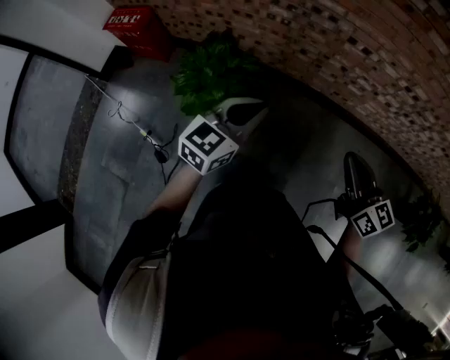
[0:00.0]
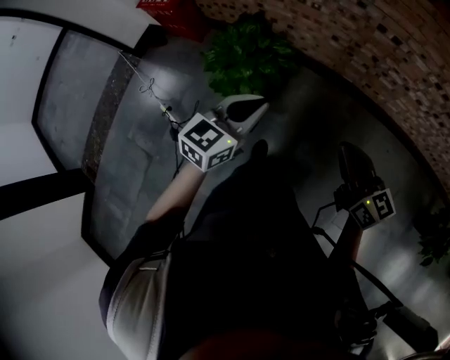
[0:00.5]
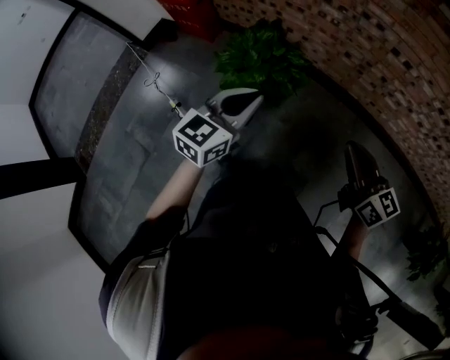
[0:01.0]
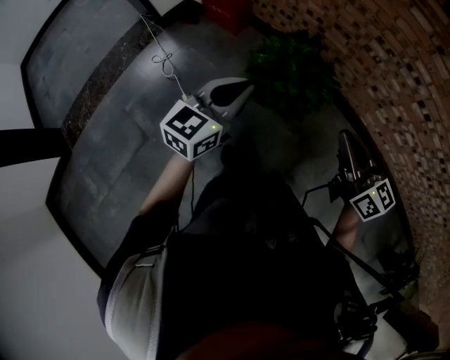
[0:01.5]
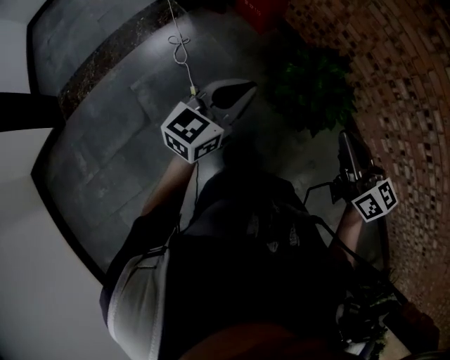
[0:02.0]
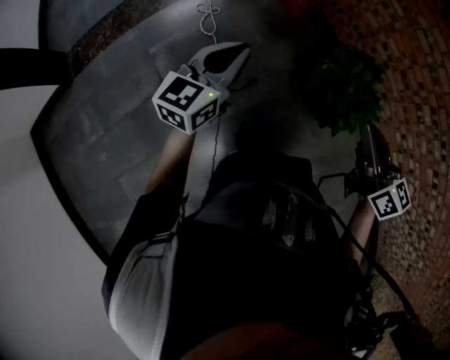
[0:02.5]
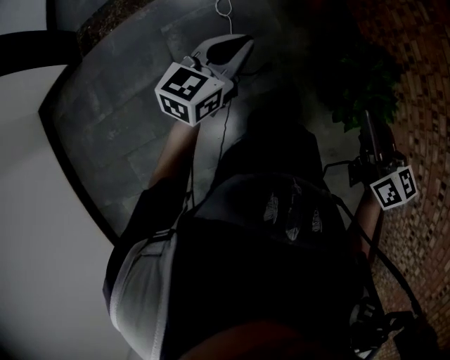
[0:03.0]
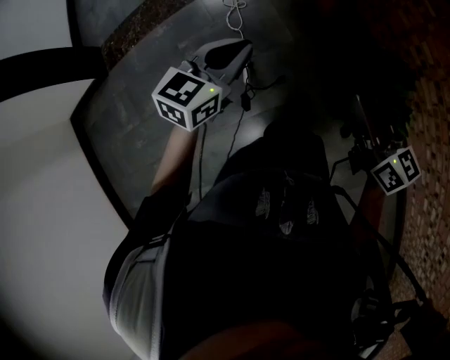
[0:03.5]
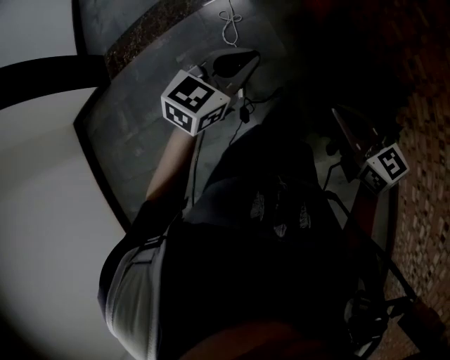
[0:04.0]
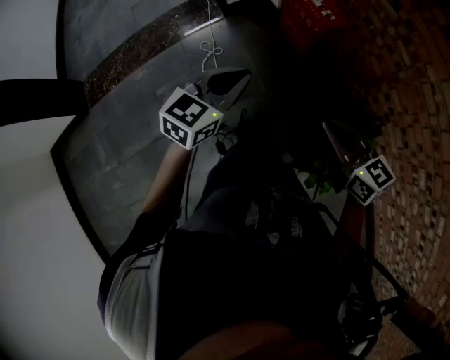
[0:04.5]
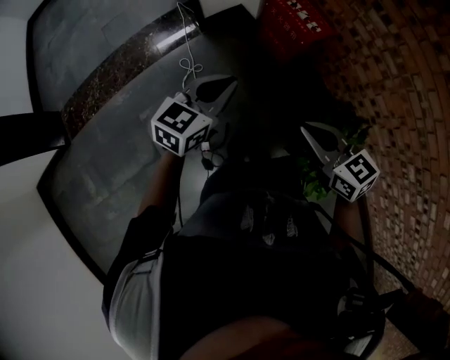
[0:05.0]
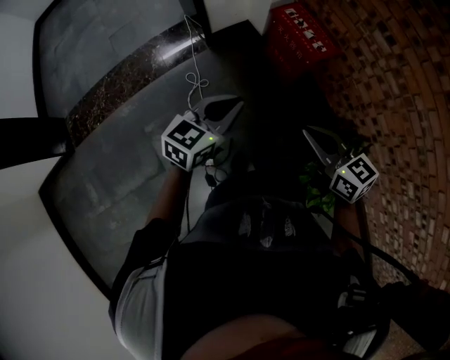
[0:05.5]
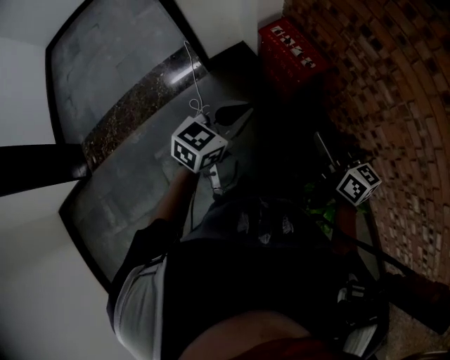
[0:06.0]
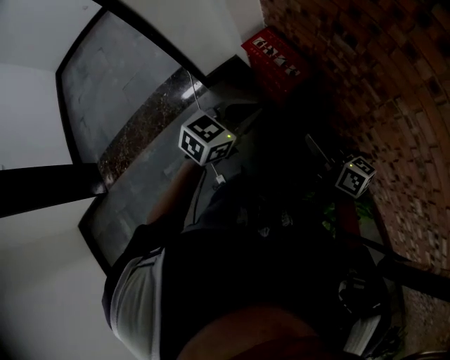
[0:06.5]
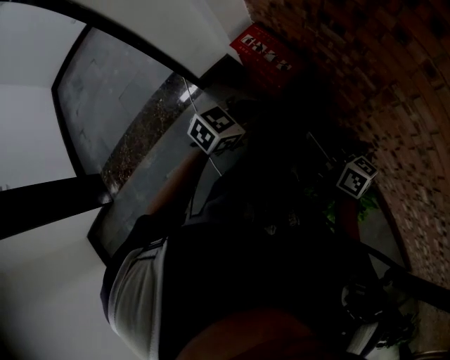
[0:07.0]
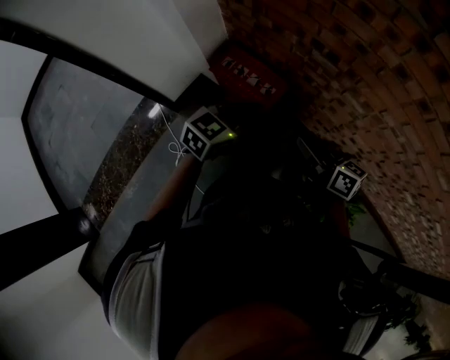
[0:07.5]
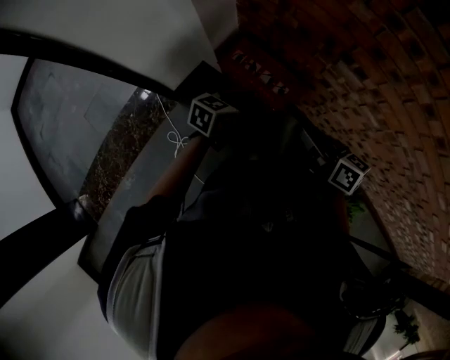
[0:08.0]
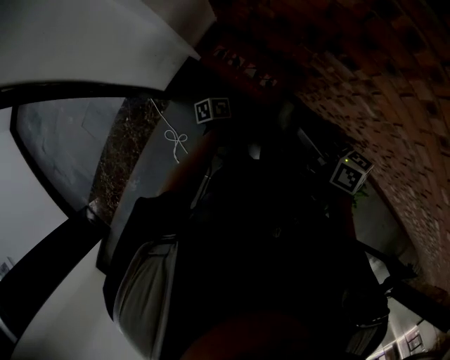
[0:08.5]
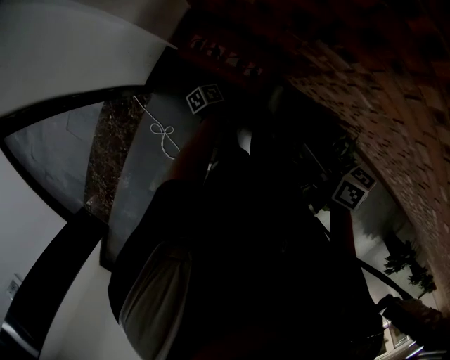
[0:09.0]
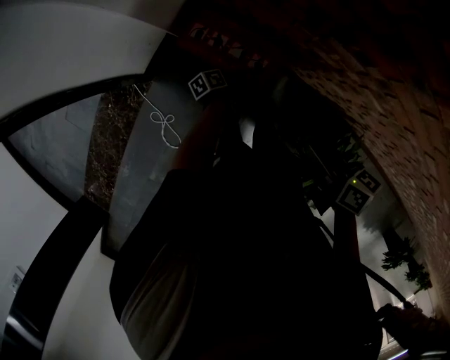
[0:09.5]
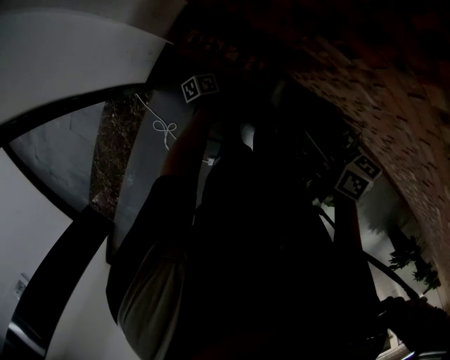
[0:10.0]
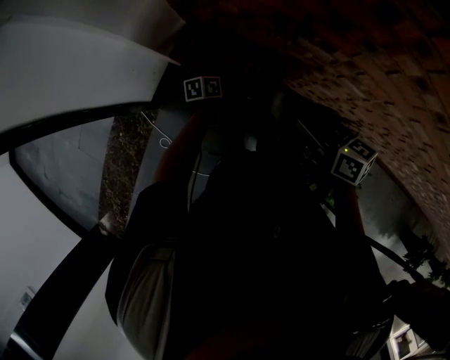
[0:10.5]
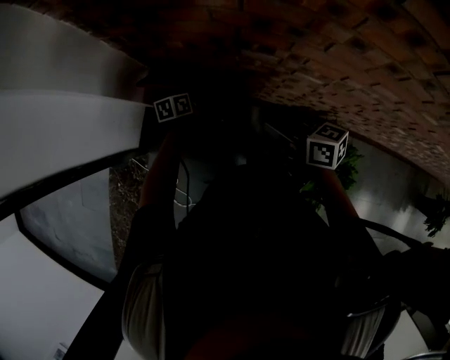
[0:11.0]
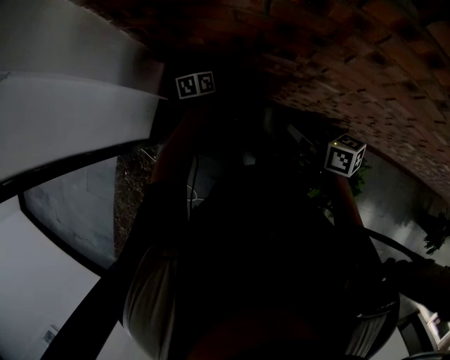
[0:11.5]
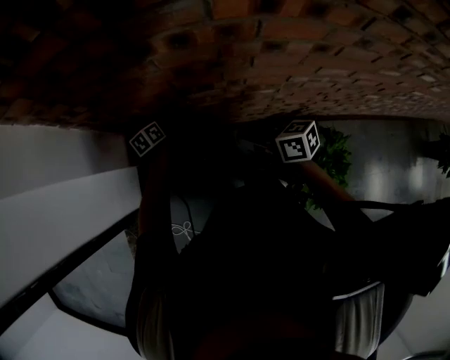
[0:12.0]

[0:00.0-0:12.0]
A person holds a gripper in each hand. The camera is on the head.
0:00.0 to 0:02.0: The pair of grippers is taken some 40 cm. The left gripper rotates about 30 degrees, while the right gripper rotates about 30 degrees.
0:02.0 to 0:04.0: The left gripper moves forward, about 25 cm, and swivels about 20 degrees. Meanwhile the right gripper goes approximately 25 cm forward and downward, and changes its angle by approximately 30 degrees.
0:04.0 to 0:06.0: Both grippers move forward, roughly 25 cm. The right gripper rotates approximately 20 degrees.
0:06.0 to 0:08.0: Both grippers move forward, approximately 25 cm. The left gripper rotates about 30 degrees, and opens its fingers.
0:08.0 to 0:10.0: The left gripper heads downward, covering roughly 30 cm, and rolls counterclockwise, seen from behind, by roughly 50 degrees, while the right gripper shifts approximately 10 cm to the right and downward.
0:10.0 to 0:12.0: The right gripper goes approximately 5 cm to the right, while the left gripper moves forward, upward and to the right, some 25 cm, and rotates roughly 40 degrees.

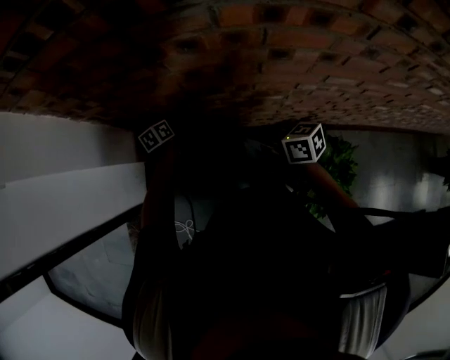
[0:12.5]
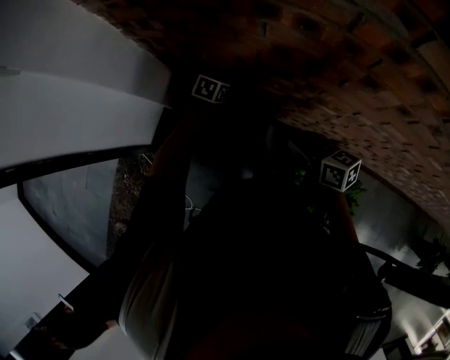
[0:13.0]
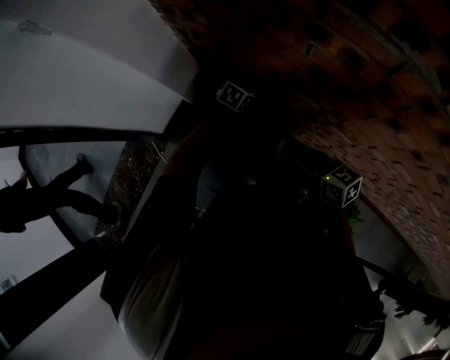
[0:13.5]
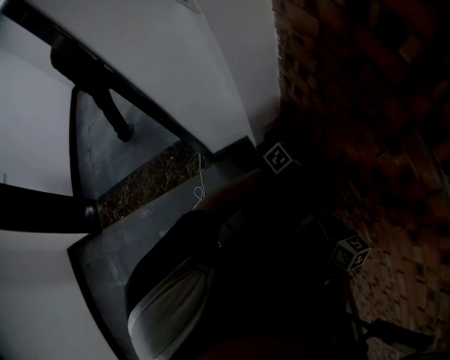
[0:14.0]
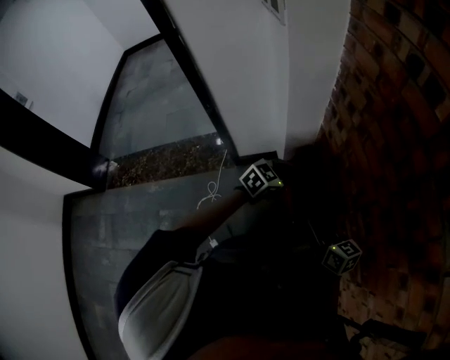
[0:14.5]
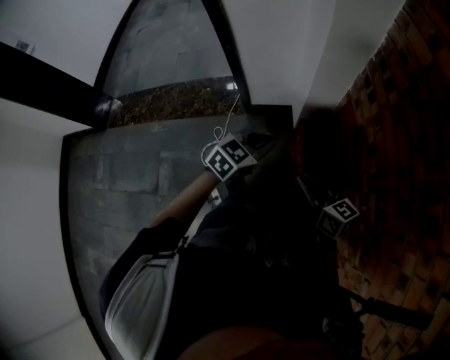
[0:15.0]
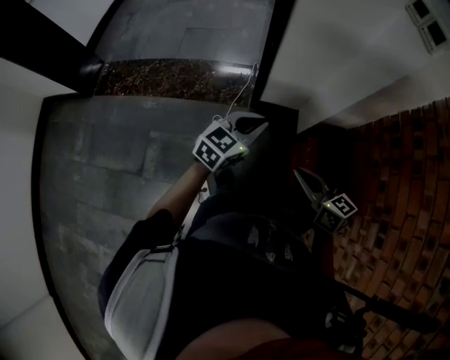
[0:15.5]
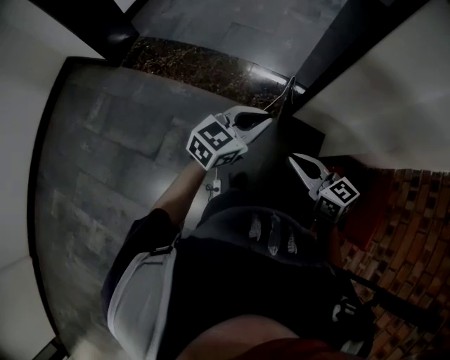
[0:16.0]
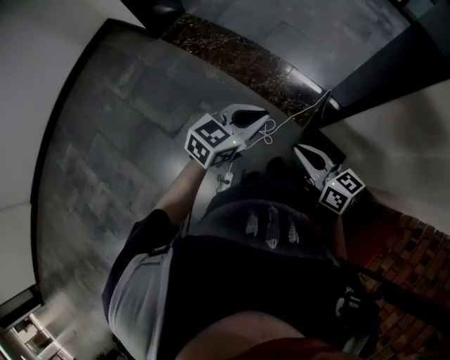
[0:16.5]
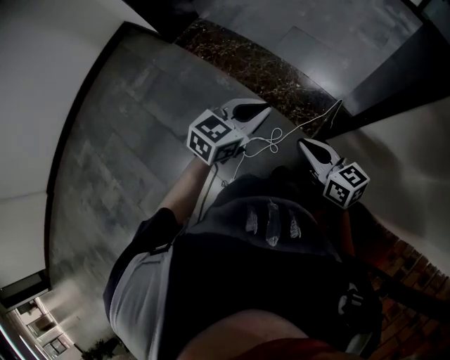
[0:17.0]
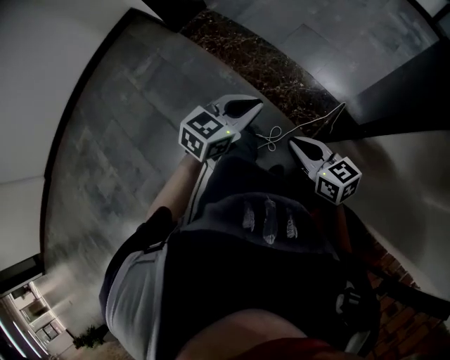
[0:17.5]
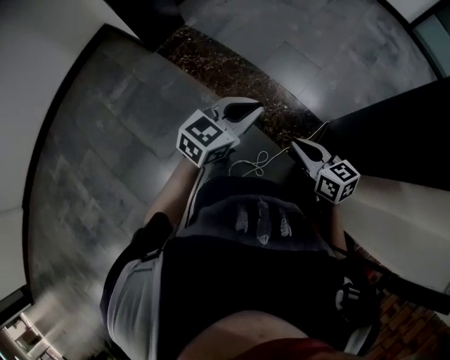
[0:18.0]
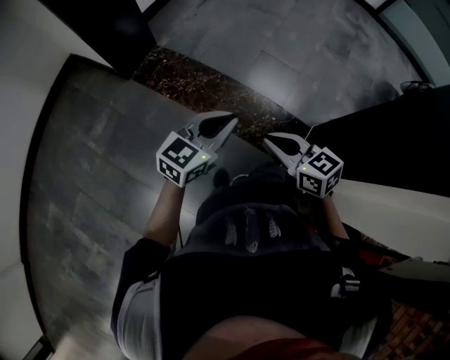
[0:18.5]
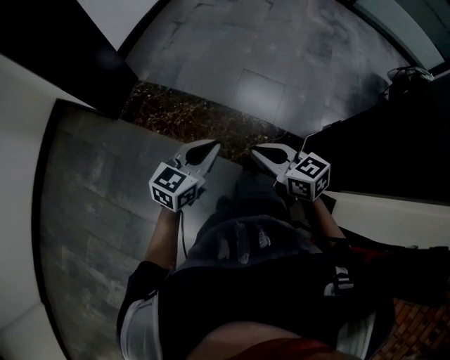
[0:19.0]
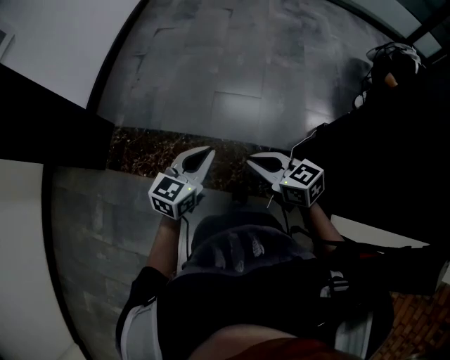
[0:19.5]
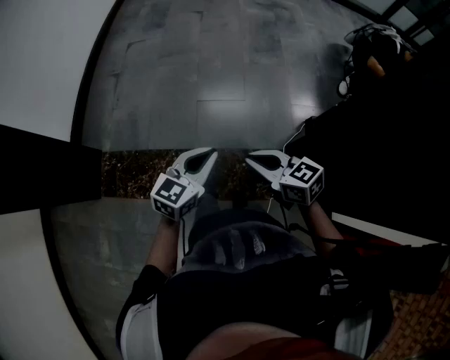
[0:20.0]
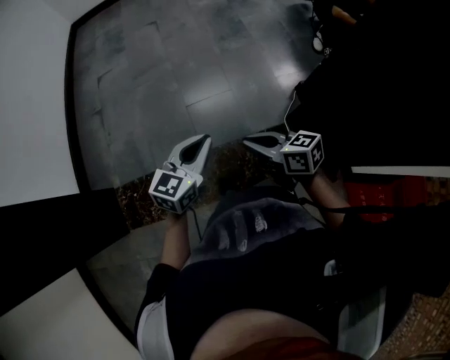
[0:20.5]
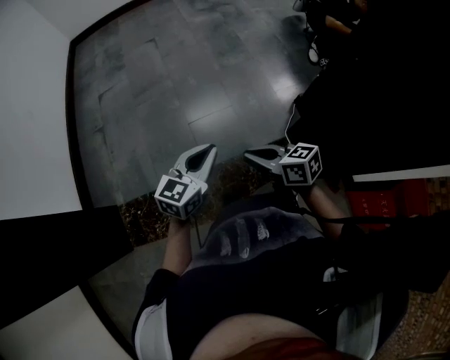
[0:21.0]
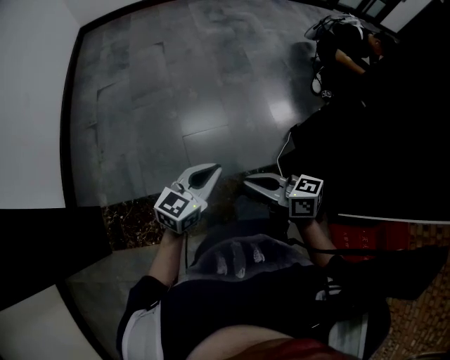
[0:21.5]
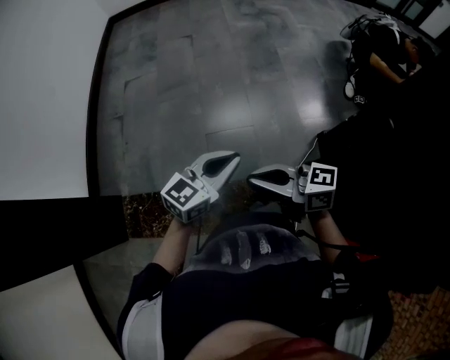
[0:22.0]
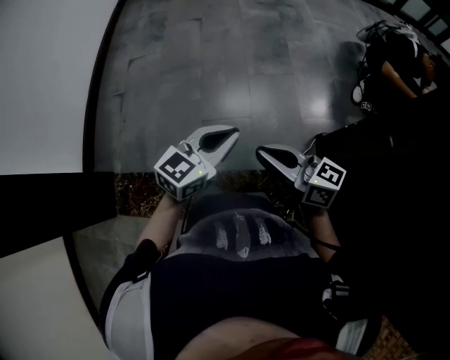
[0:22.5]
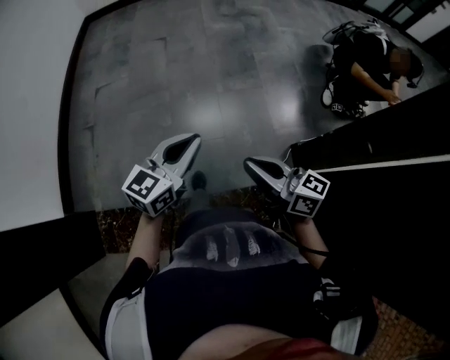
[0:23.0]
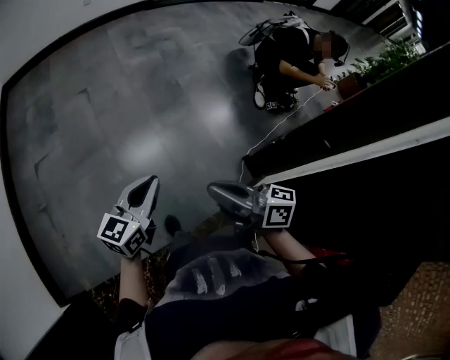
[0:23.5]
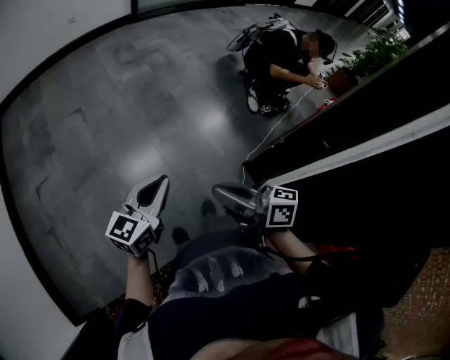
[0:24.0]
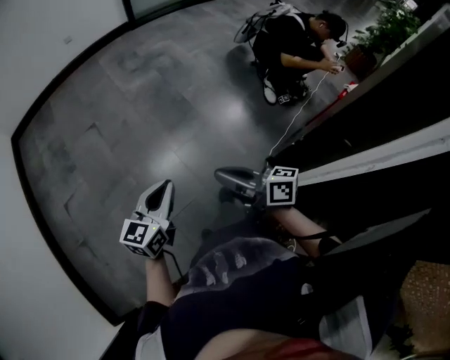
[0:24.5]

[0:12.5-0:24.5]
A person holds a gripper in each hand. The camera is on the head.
0:12.5 to 0:14.5: The left gripper shifts by about 25 cm, changes its angle by about 30 degrees, and closes. Meanwhile the right gripper changes place by roughly 15 cm, and rotates about 50 degrees.
0:14.5 to 0:16.5: Both grippers are carried roughly 60 cm. The right gripper changes its angle by roughly 60 degrees. The left gripper changes its angle by some 60 degrees.
0:16.5 to 0:18.5: The two grippers go some 40 cm forward and to the left.
0:18.5 to 0:20.5: The two grippers travel together, some 40 cm. The right gripper changes its angle by some 40 degrees; the left gripper rotates some 30 degrees.
0:20.5 to 0:22.5: The left gripper ends up some 25 cm from where it was. Meanwhile the right gripper moves about 25 cm, and rotates roughly 20 degrees.
0:22.5 to 0:24.5: Both grippers move forward, about 30 cm. The right gripper turns by roughly 30 degrees.

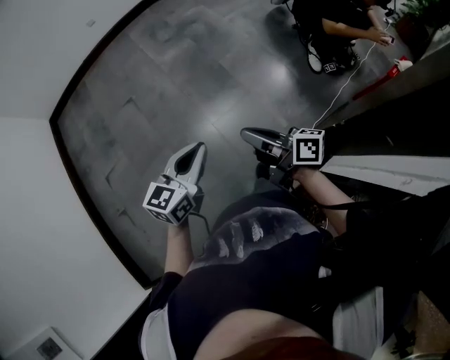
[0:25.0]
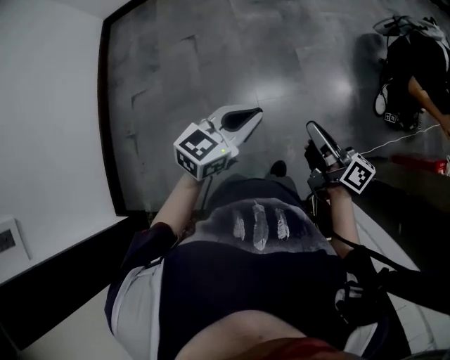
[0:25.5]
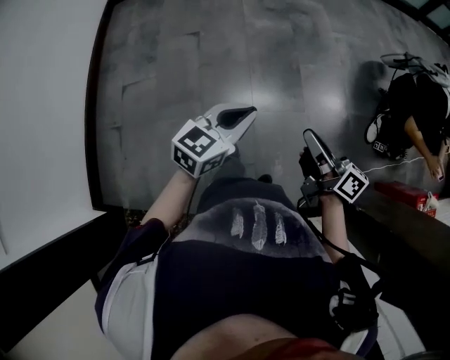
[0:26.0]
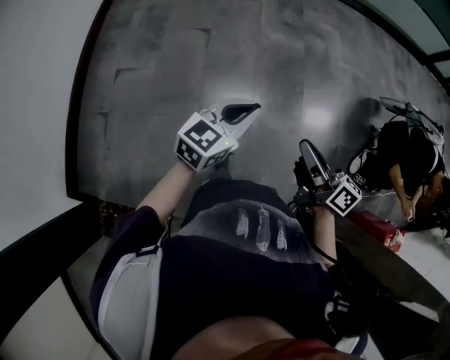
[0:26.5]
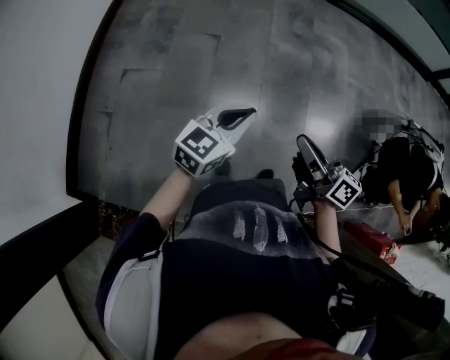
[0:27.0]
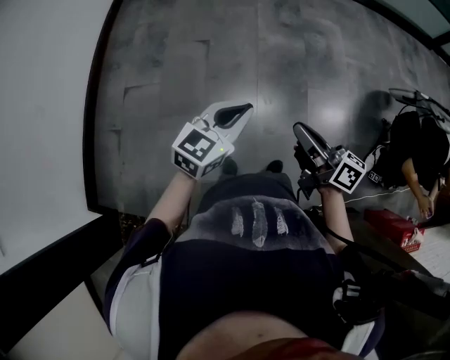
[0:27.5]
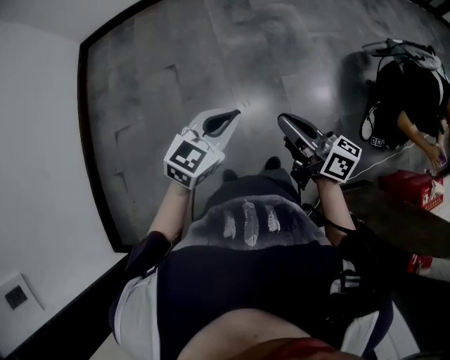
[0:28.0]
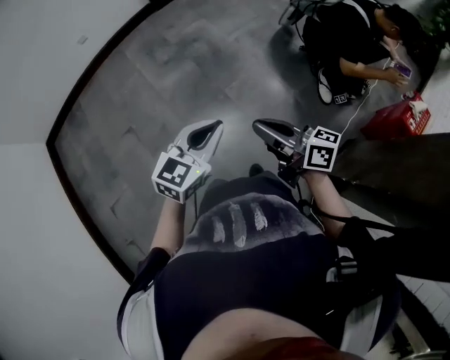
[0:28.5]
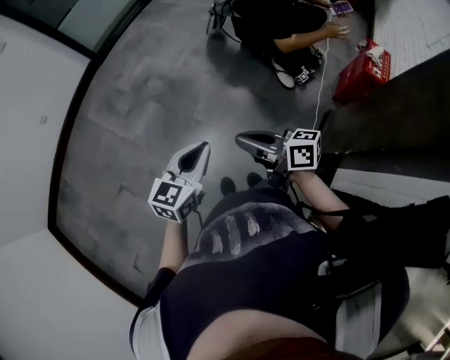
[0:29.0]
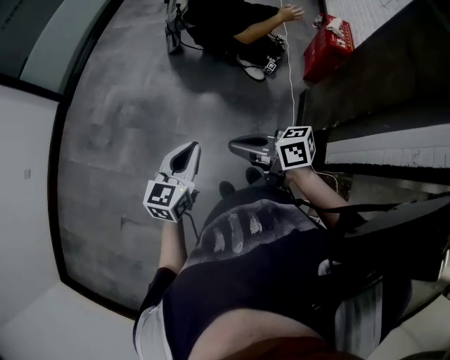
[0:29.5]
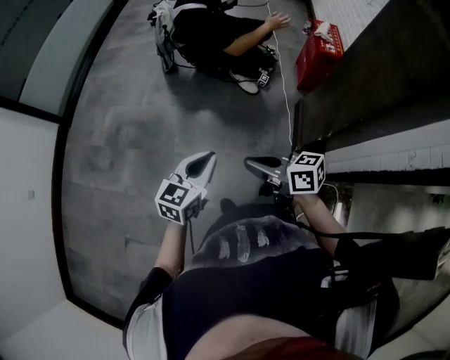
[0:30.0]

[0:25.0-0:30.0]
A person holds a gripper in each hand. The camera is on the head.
0:25.0 to 0:27.5: The left gripper moves some 5 cm forward and comes back, and changes its angle by roughly 30 degrees; the right gripper swivels some 30 degrees.
0:27.5 to 0:30.0: The right gripper shifts by approximately 15 cm, and rotates about 60 degrees. Meanwhile the left gripper ends up some 20 cm from where it was, and rotates roughly 70 degrees.
